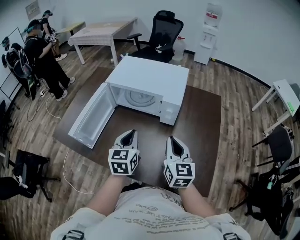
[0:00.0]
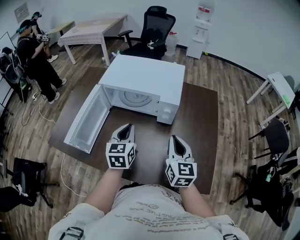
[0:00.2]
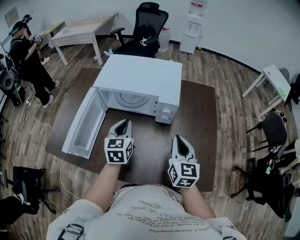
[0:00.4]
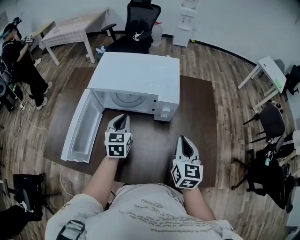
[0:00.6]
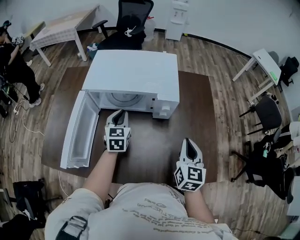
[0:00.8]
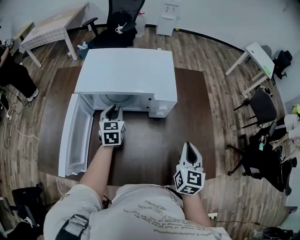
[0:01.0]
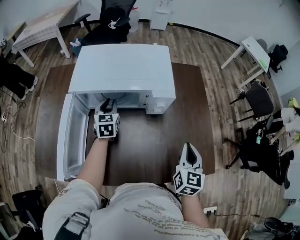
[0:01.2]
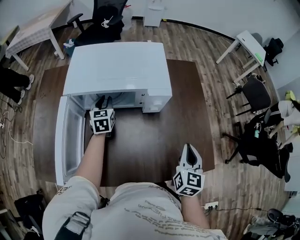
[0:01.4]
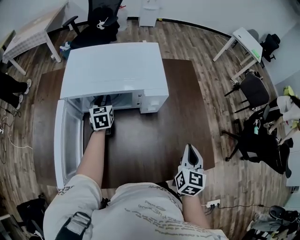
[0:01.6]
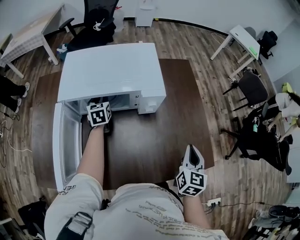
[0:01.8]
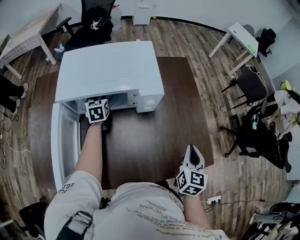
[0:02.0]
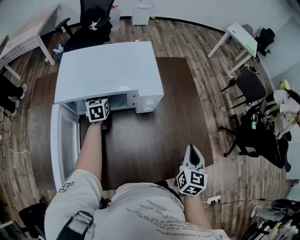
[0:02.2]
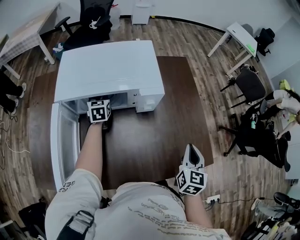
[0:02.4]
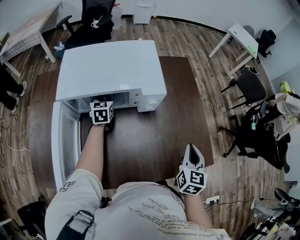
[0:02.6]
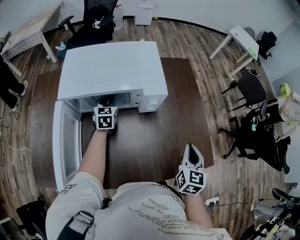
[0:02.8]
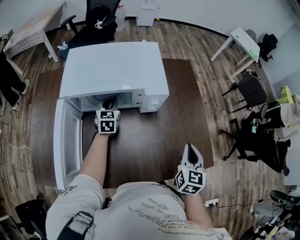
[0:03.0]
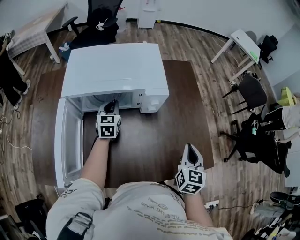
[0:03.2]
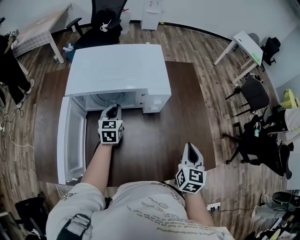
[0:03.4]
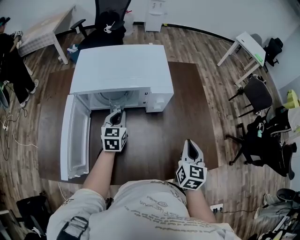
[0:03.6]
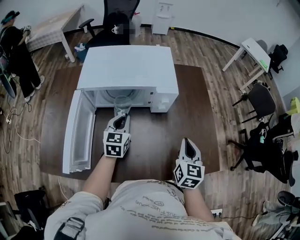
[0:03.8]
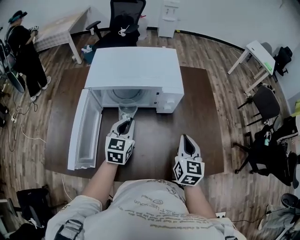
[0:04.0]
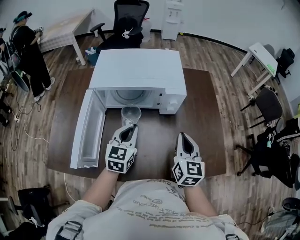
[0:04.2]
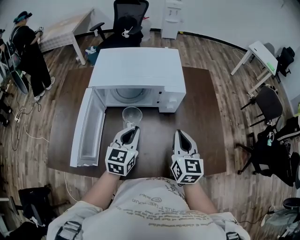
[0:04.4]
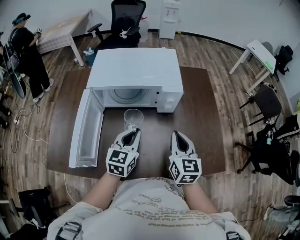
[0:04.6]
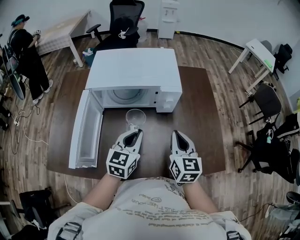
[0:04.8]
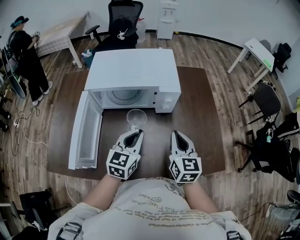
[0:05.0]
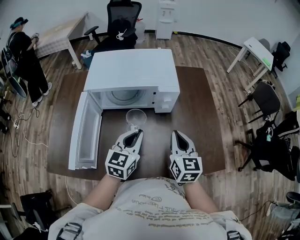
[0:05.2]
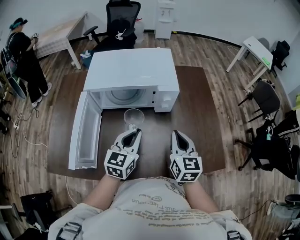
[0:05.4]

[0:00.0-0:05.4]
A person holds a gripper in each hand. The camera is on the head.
0:00.0 to 0:01.4: The left gripper changes place by some 30 cm. The right gripper shifts approximately 5 cm downward, and swivels approximately 40 degrees.
0:01.4 to 0:02.8: The left gripper moves roughly 5 cm.
0:02.8 to 0:04.0: The right gripper moves to the left, some 10 cm. The left gripper moves backward and upward, approximately 20 cm.
0:04.0 to 0:05.4: The left gripper is displaced backward by about 5 cm.

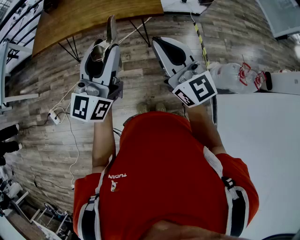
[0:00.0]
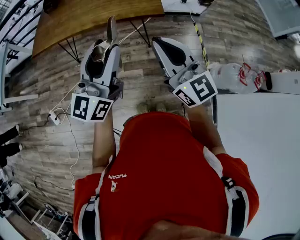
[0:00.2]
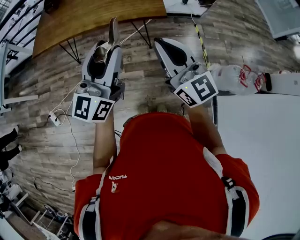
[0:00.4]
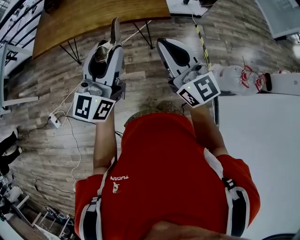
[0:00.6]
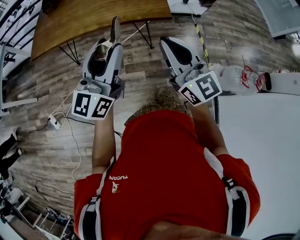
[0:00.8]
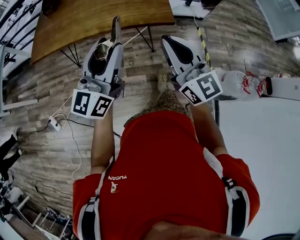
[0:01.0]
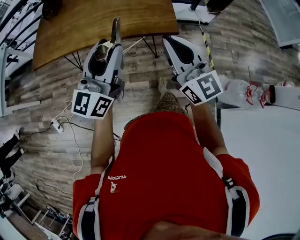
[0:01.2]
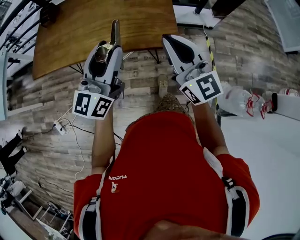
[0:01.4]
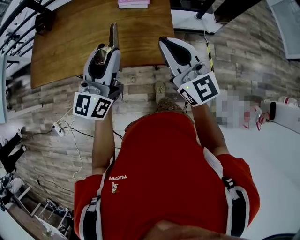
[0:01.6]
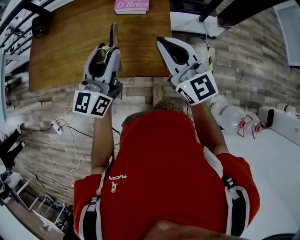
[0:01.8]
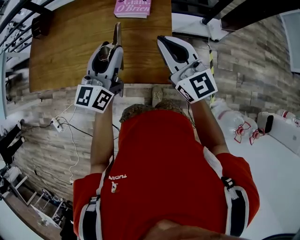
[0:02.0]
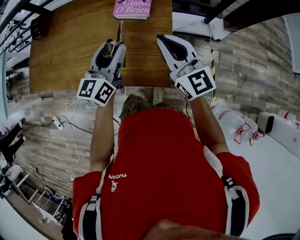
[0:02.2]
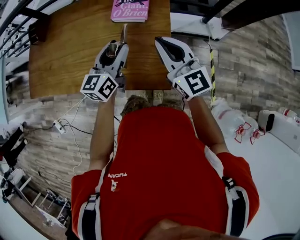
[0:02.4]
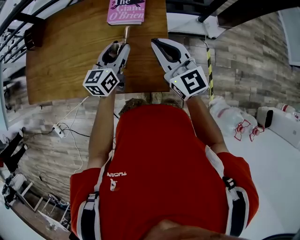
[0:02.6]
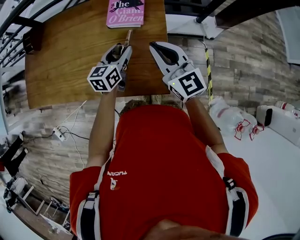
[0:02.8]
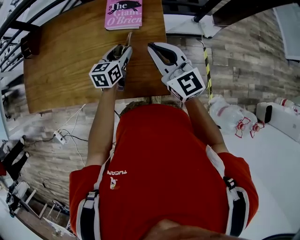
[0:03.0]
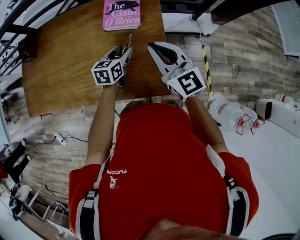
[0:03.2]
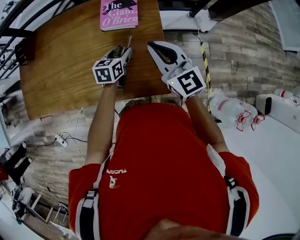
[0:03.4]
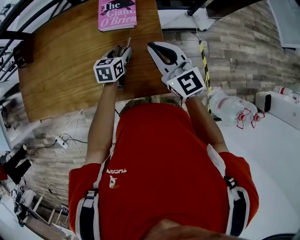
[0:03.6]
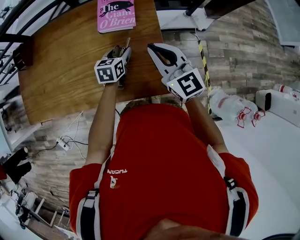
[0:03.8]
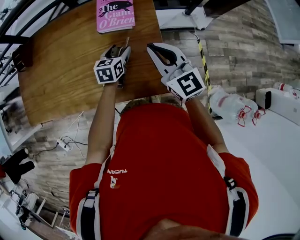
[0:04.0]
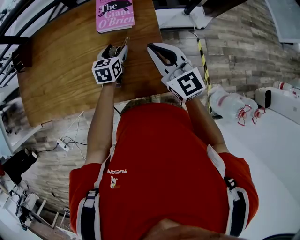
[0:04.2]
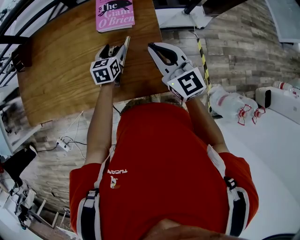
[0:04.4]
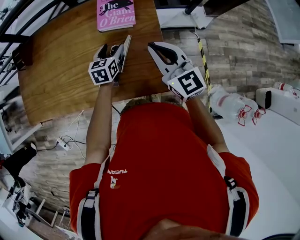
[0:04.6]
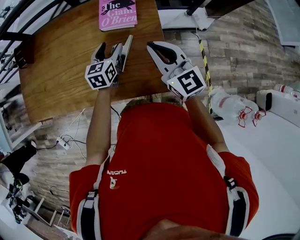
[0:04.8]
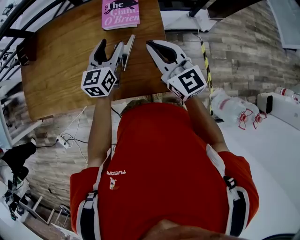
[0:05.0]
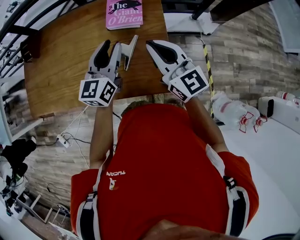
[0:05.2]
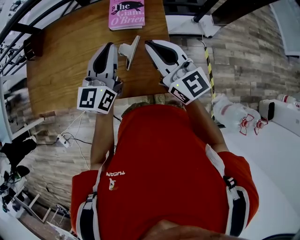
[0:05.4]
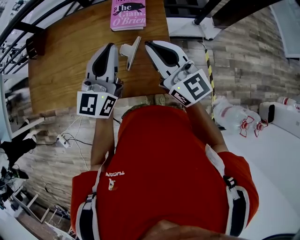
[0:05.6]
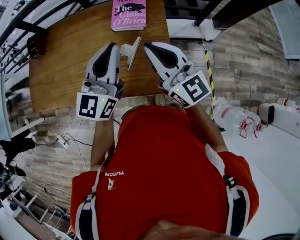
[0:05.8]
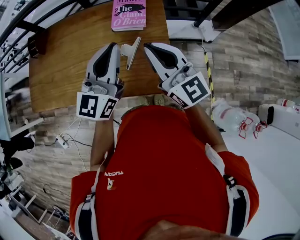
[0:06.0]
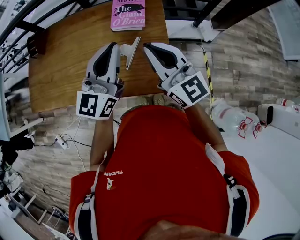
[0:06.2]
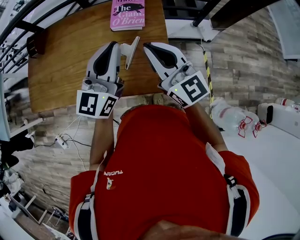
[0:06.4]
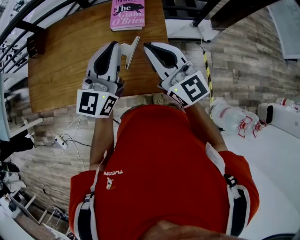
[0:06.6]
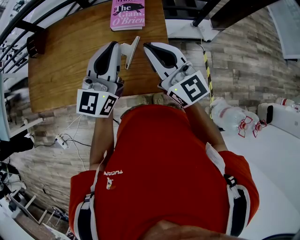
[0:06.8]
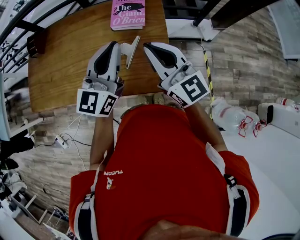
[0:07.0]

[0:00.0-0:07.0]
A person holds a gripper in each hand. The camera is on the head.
0:00.0 to 0:01.4: Both grippers travel together forward, approximately 25 cm.
0:01.4 to 0:02.8: The left gripper is displaced forward and downward by approximately 35 cm, and angles its fingers downward, by roughly 30 degrees, while the right gripper moves forward, some 25 cm.
0:02.8 to 0:04.2: The left gripper heads downward, covering about 5 cm.
0:04.2 to 0:05.6: The right gripper is displaced upward by approximately 10 cm; the left gripper moves upward, some 25 cm, tilts its fingers some 40 degrees upward, and closes its fingers.
0:05.6 to 0:07.0: There are only small adjustments of the grippers.

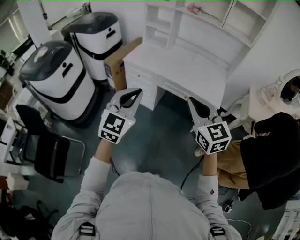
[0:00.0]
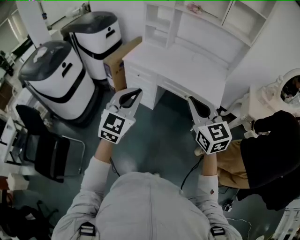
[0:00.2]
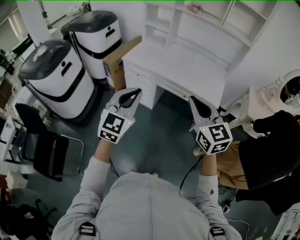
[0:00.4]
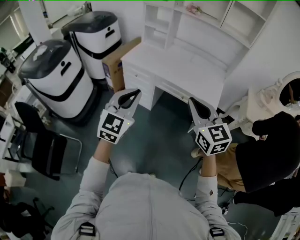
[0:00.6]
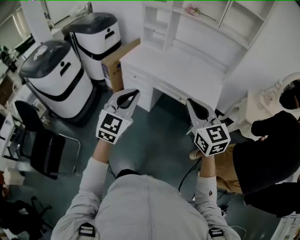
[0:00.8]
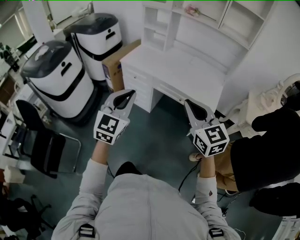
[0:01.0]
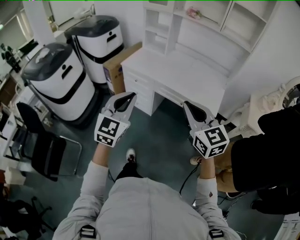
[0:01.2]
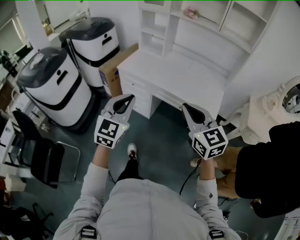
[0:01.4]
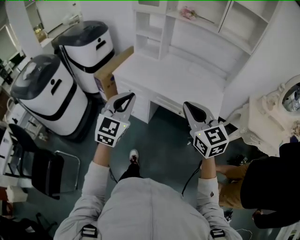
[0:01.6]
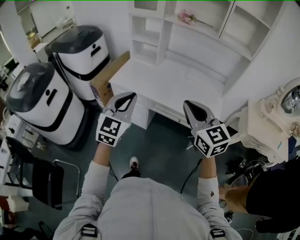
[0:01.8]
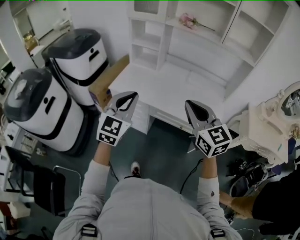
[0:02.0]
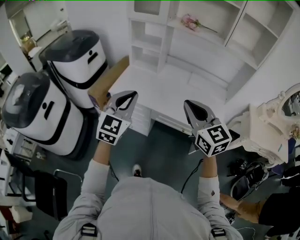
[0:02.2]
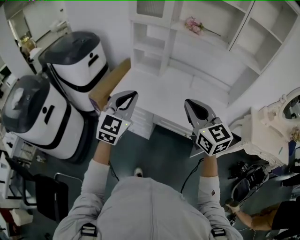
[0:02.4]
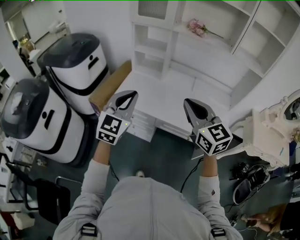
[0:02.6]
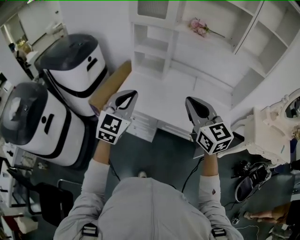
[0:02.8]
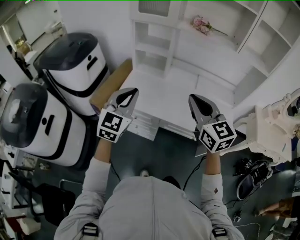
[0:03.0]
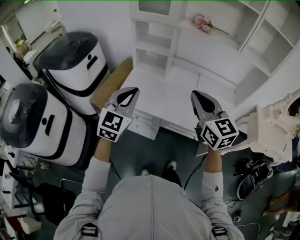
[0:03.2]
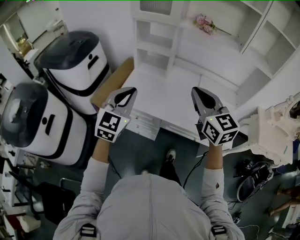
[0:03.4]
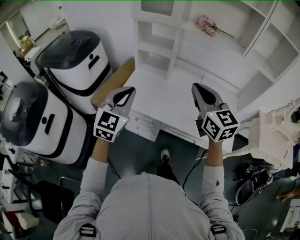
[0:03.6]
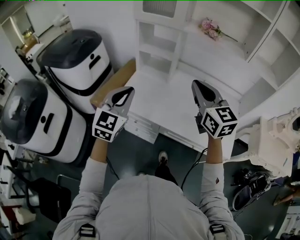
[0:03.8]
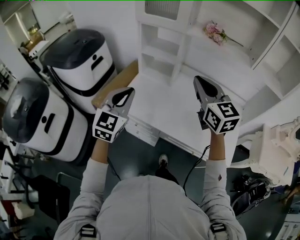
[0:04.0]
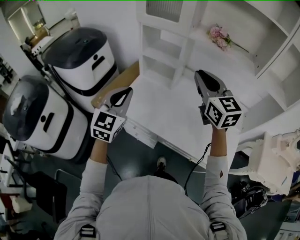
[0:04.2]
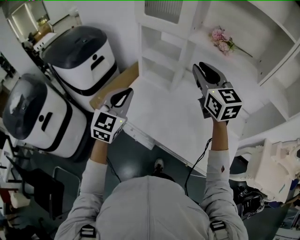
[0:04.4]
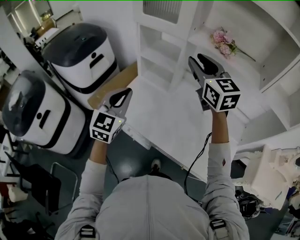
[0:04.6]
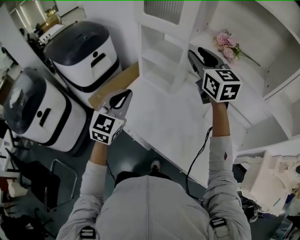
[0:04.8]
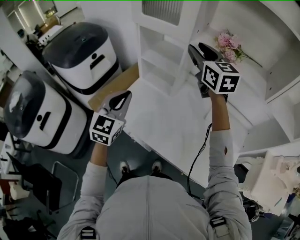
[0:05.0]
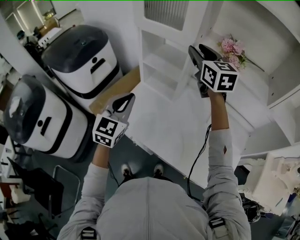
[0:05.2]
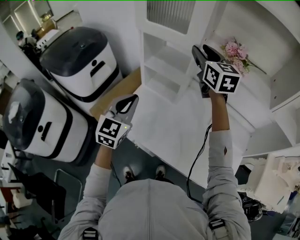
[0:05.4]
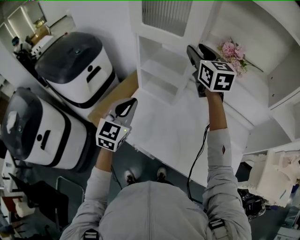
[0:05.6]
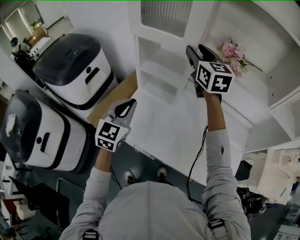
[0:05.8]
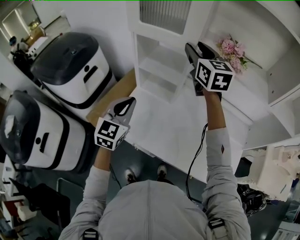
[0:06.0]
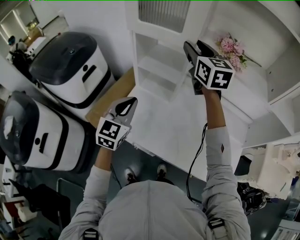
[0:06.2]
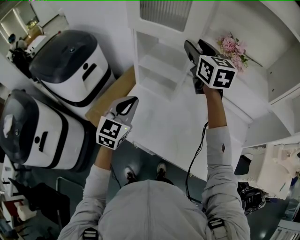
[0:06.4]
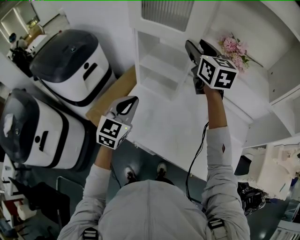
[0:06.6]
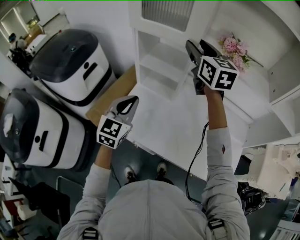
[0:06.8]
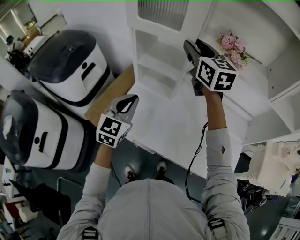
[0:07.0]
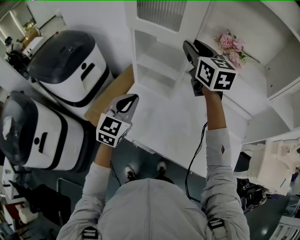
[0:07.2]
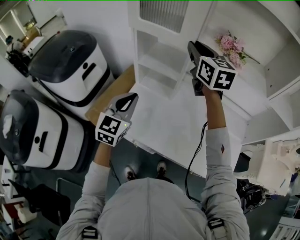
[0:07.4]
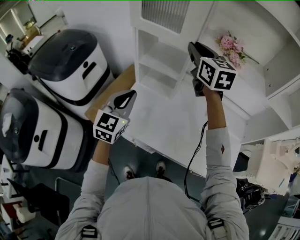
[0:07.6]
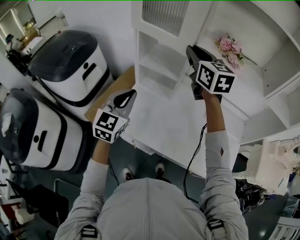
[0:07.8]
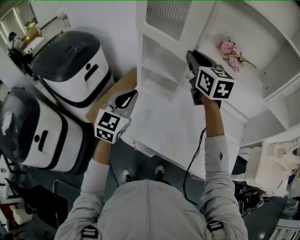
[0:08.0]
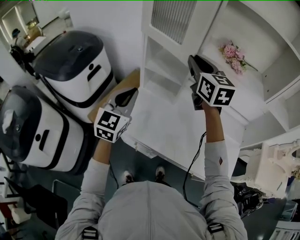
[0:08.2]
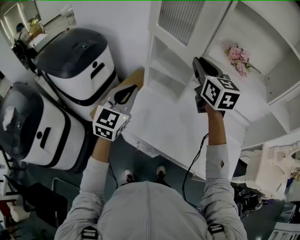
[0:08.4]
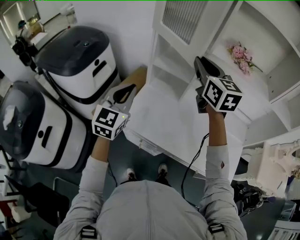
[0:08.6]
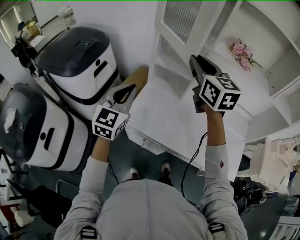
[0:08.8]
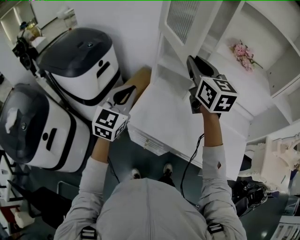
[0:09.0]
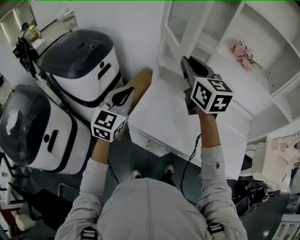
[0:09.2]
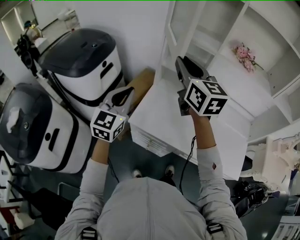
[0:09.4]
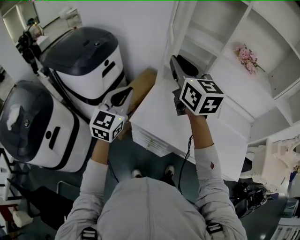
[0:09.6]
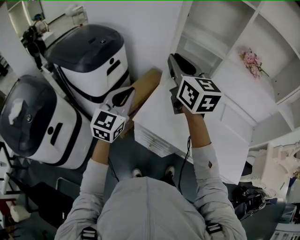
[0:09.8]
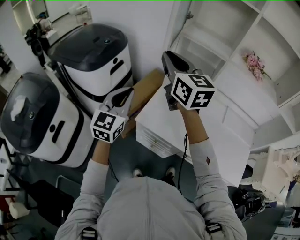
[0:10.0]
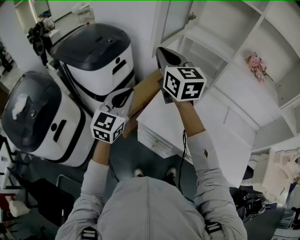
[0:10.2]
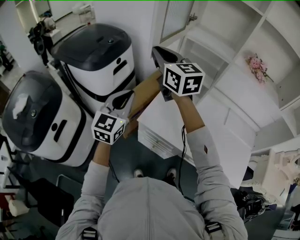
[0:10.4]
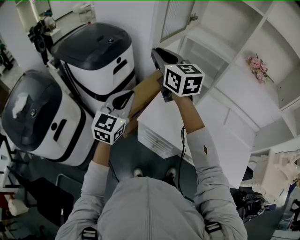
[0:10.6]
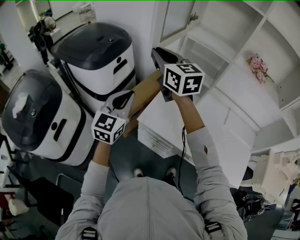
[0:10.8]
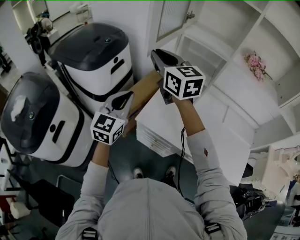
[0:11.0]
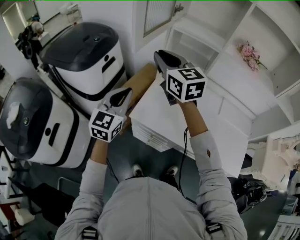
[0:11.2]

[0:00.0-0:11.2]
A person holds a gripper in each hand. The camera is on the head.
0:00.0 to 0:01.6: Both grippers move forward, some 15 cm.
0:01.6 to 0:03.2: Both grippers travel together forward, some 25 cm.
0:03.2 to 0:04.8: The left gripper is displaced forward by about 15 cm. The right gripper moves forward, roughly 35 cm, and opens its fingers.
0:04.8 to 0:06.4: The grippers both shift forward by roughly 10 cm.
0:06.4 to 0:08.0: The right gripper shifts about 5 cm backward, and closes.
0:08.0 to 0:09.6: The right gripper is displaced to the left and backward by approximately 20 cm. The left gripper moves to the left, about 15 cm.
0:09.6 to 0:11.2: The right gripper goes approximately 5 cm to the left.
